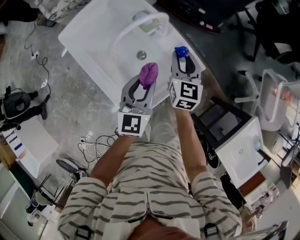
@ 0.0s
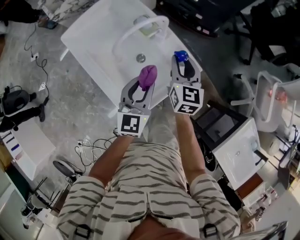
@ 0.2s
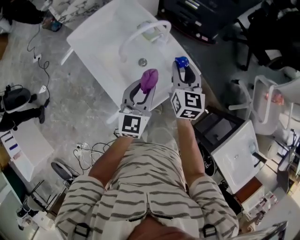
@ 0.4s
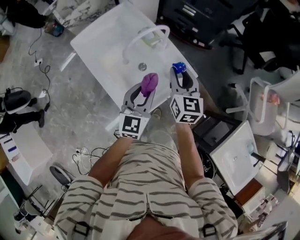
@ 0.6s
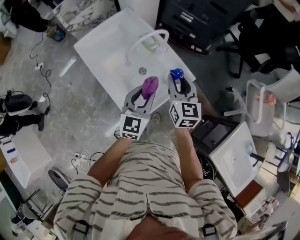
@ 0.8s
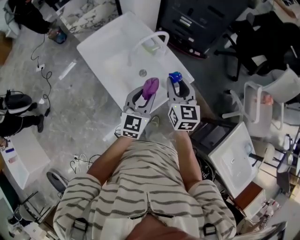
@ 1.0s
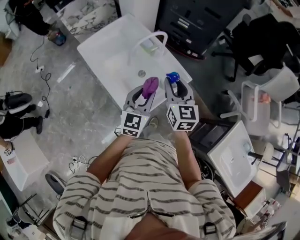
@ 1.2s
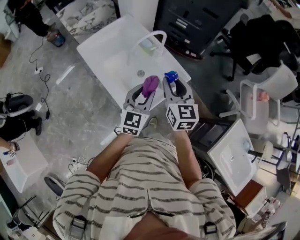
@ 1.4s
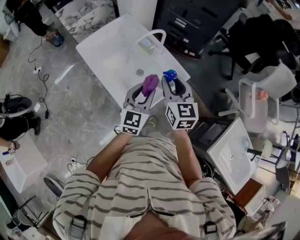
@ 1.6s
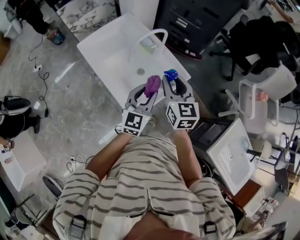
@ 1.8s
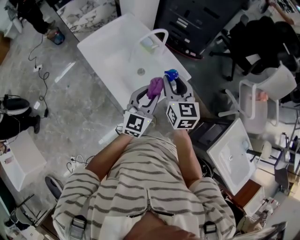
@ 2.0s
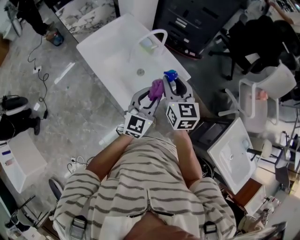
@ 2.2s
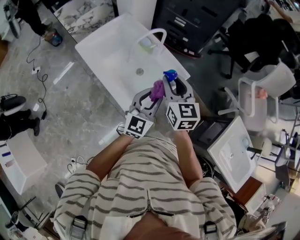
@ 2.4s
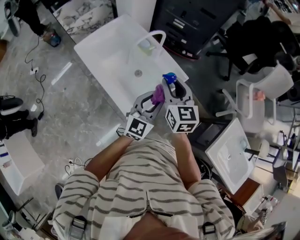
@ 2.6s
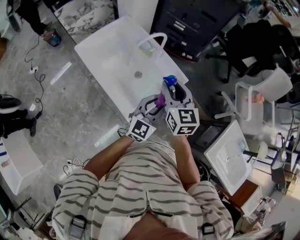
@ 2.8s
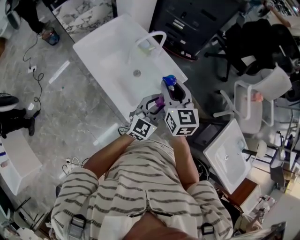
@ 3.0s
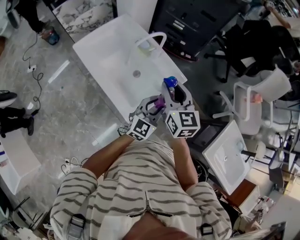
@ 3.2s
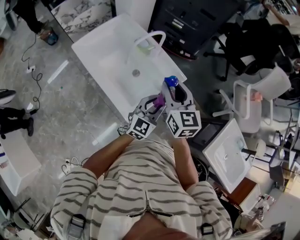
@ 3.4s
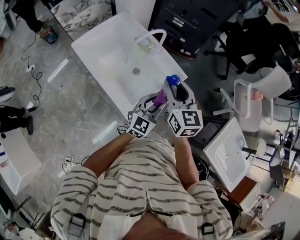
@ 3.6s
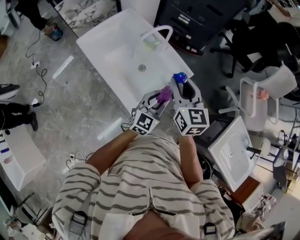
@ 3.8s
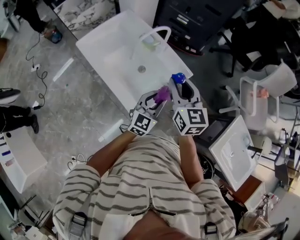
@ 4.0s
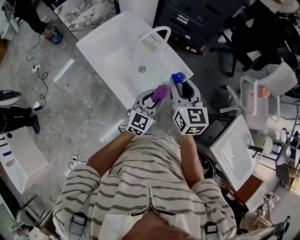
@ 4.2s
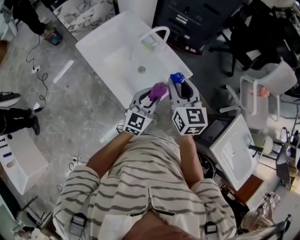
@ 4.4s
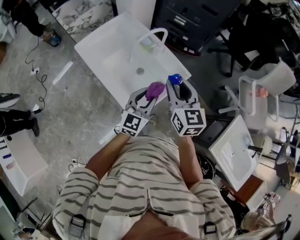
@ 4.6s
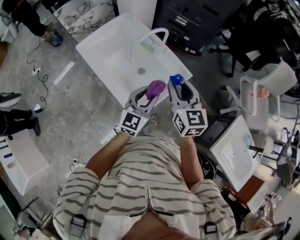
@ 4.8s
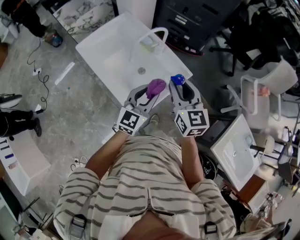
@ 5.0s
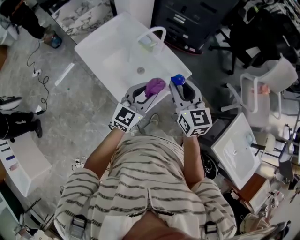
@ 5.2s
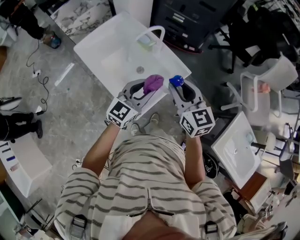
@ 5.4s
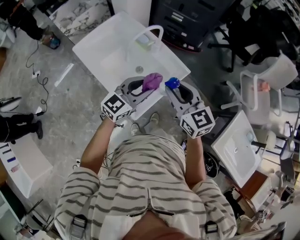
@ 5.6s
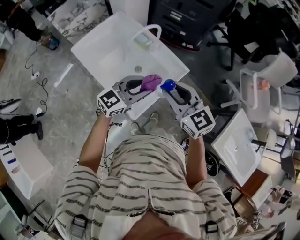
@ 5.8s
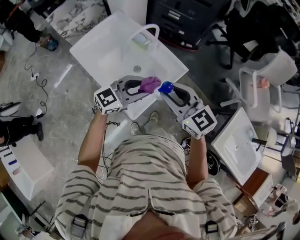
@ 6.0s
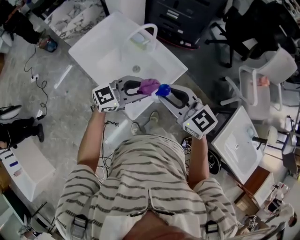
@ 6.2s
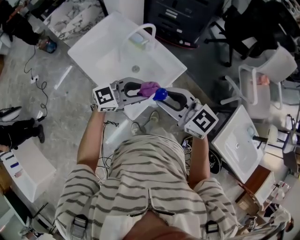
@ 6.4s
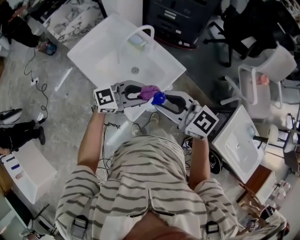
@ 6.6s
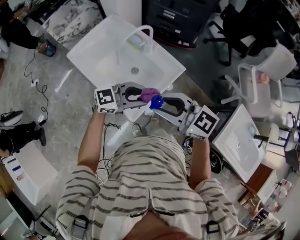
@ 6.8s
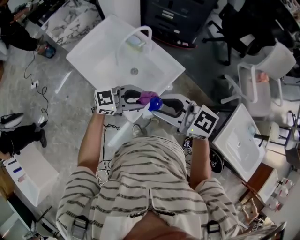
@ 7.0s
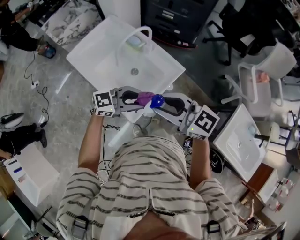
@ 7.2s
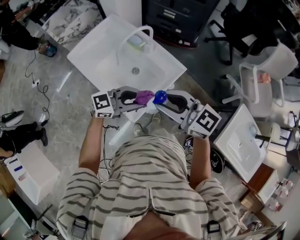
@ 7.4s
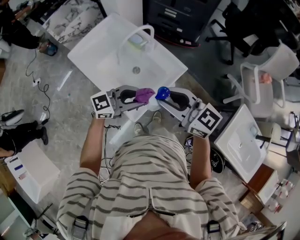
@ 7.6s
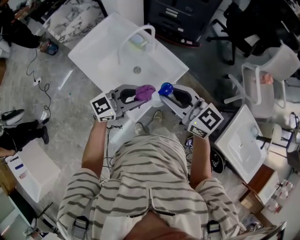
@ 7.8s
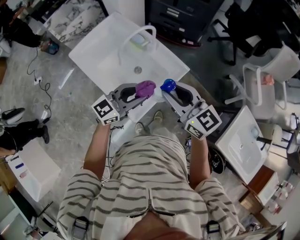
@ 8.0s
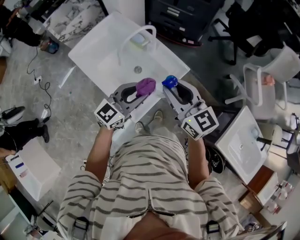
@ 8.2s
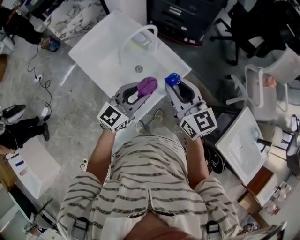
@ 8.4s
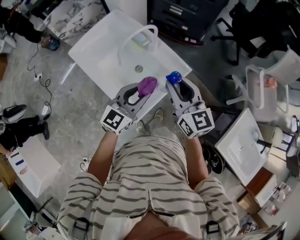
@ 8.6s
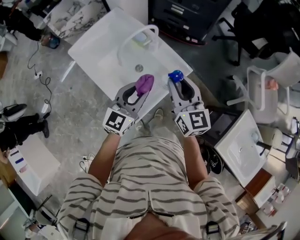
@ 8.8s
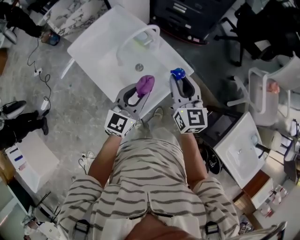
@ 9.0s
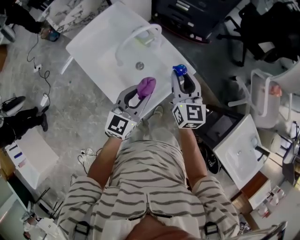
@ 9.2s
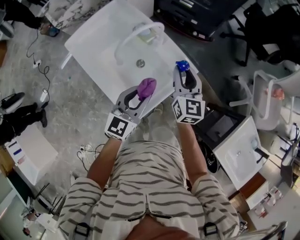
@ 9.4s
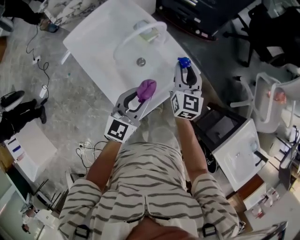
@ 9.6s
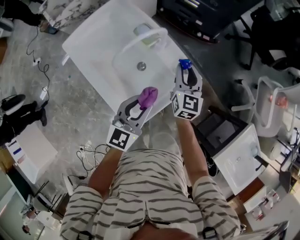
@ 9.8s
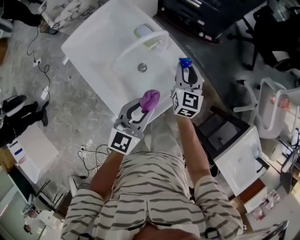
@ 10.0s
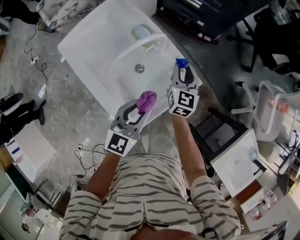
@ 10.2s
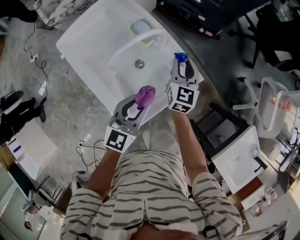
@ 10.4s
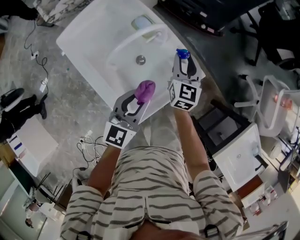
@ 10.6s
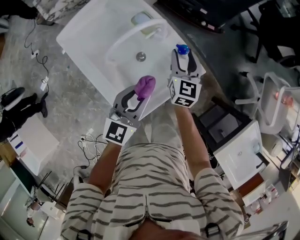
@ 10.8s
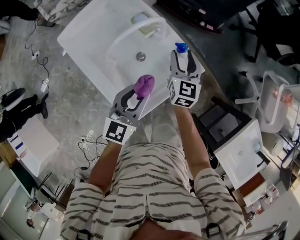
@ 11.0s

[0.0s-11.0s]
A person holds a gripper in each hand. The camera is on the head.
0.0s to 1.6s: The left gripper shifts approximately 10 cm backward and upward; the right gripper shifts some 25 cm upward and backward.
1.6s to 3.2s: The left gripper shifts some 5 cm to the right.
3.2s to 4.8s: The left gripper shifts some 5 cm to the left.
4.8s to 6.2s: The left gripper turns by some 40 degrees, while the right gripper shifts by approximately 5 cm, and turns by some 30 degrees.
6.2s to 7.8s: The grippers move only a little.
7.8s to 9.4s: The right gripper shifts by some 20 cm, and turns by roughly 40 degrees. Meanwhile the left gripper changes place by some 10 cm, and turns by roughly 40 degrees.
9.4s to 11.0s: The right gripper travels downward and forward by about 10 cm.

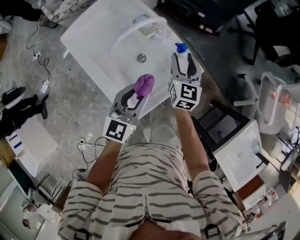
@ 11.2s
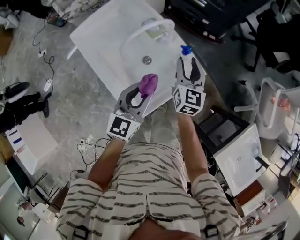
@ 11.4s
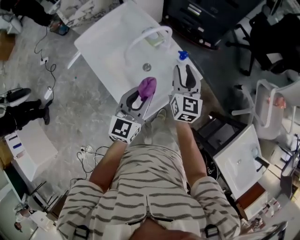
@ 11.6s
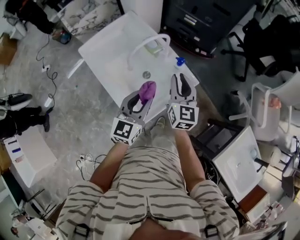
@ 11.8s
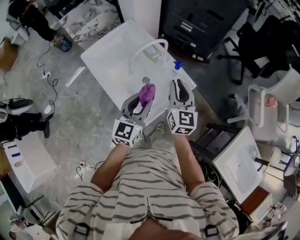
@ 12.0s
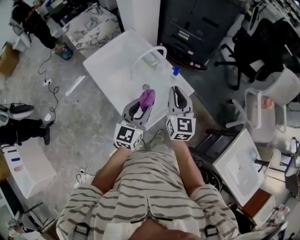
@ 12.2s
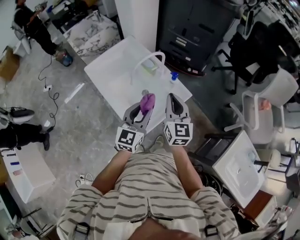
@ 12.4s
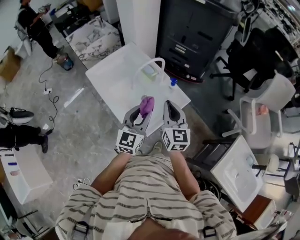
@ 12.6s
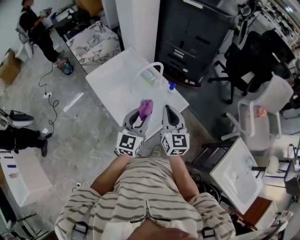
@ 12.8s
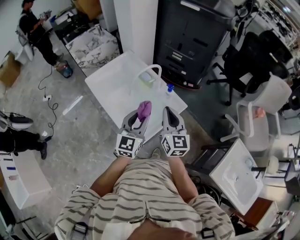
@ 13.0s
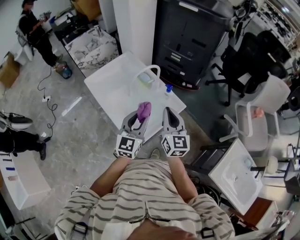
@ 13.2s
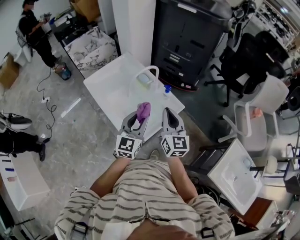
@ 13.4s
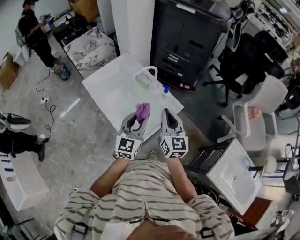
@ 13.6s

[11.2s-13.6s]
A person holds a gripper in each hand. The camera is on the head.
11.2s to 12.4s: The left gripper travels upward and backward by about 15 cm; the right gripper is displaced upward and backward by about 25 cm, and closes its fingers.
12.4s to 13.6s: The grippers move only a little.

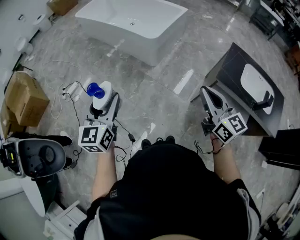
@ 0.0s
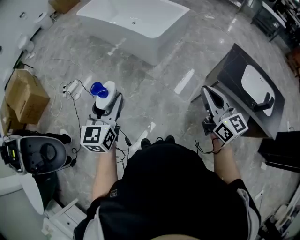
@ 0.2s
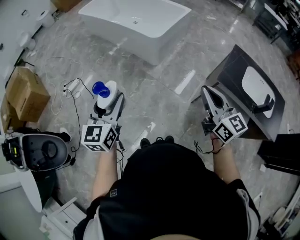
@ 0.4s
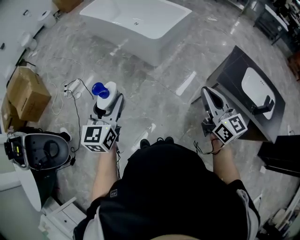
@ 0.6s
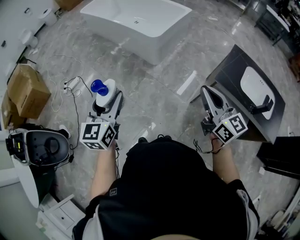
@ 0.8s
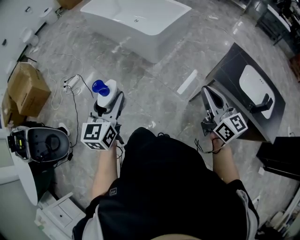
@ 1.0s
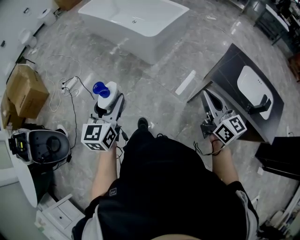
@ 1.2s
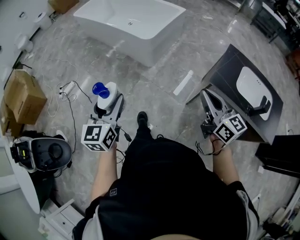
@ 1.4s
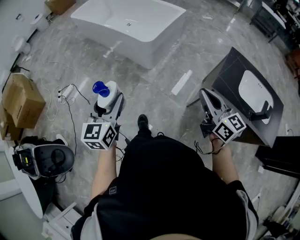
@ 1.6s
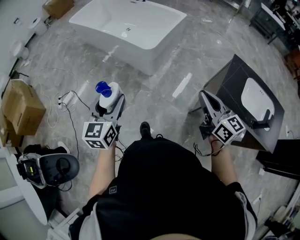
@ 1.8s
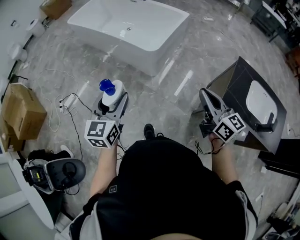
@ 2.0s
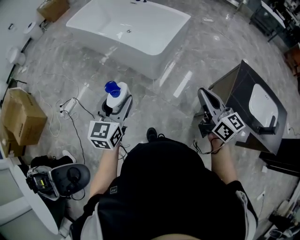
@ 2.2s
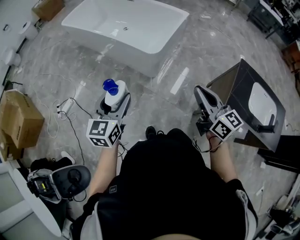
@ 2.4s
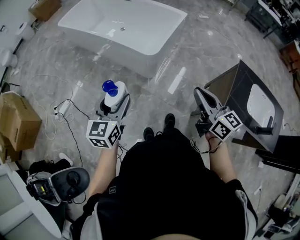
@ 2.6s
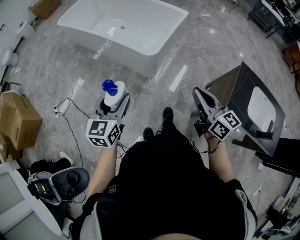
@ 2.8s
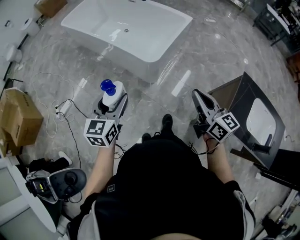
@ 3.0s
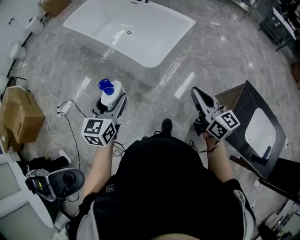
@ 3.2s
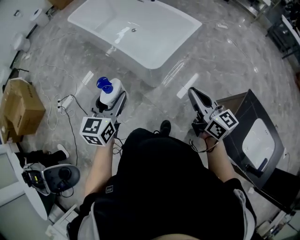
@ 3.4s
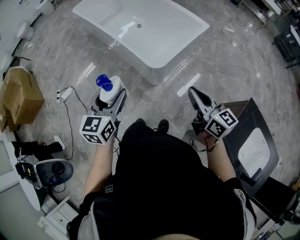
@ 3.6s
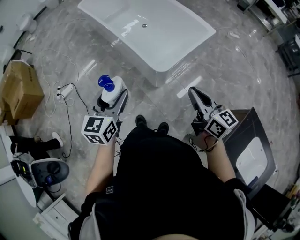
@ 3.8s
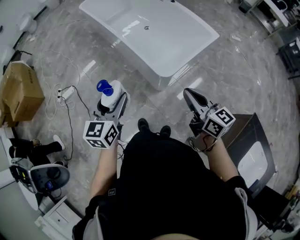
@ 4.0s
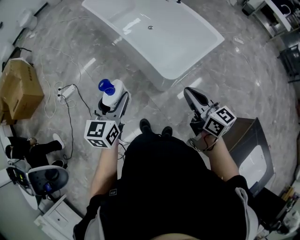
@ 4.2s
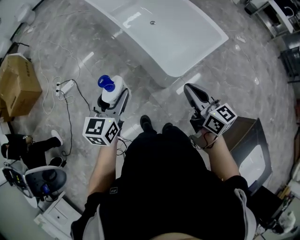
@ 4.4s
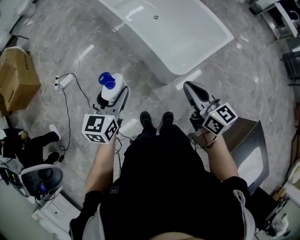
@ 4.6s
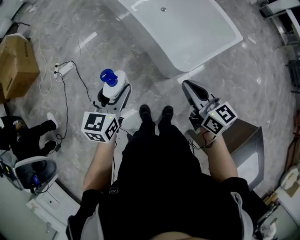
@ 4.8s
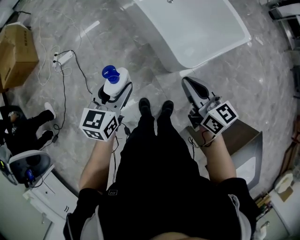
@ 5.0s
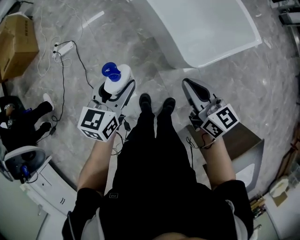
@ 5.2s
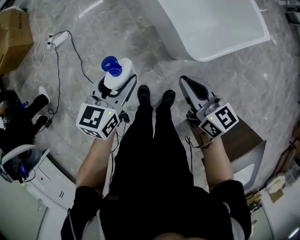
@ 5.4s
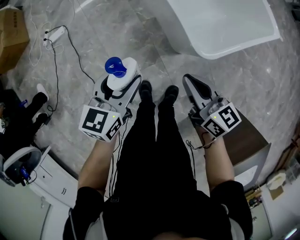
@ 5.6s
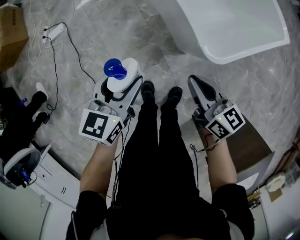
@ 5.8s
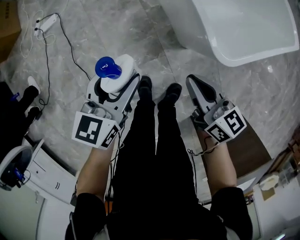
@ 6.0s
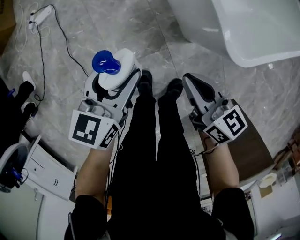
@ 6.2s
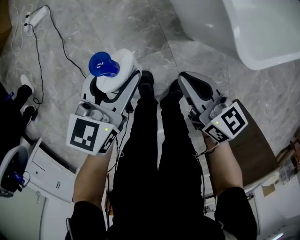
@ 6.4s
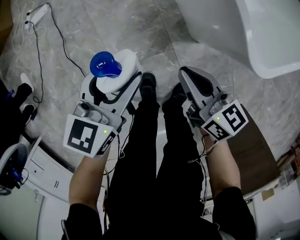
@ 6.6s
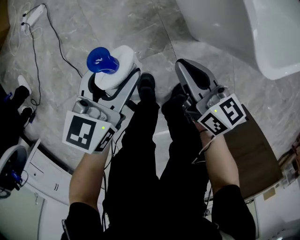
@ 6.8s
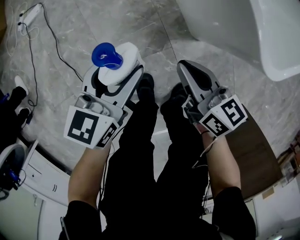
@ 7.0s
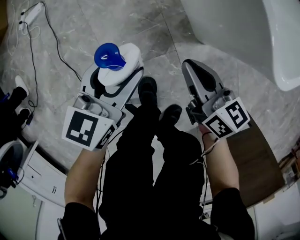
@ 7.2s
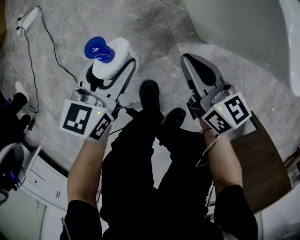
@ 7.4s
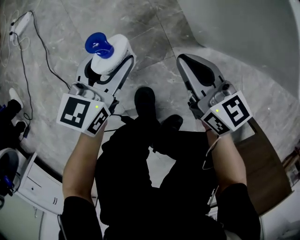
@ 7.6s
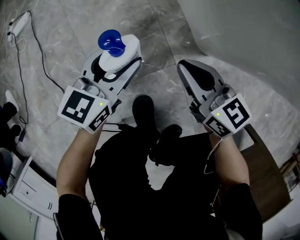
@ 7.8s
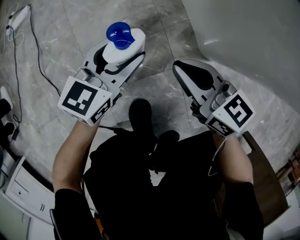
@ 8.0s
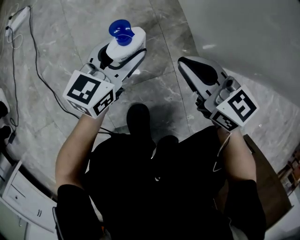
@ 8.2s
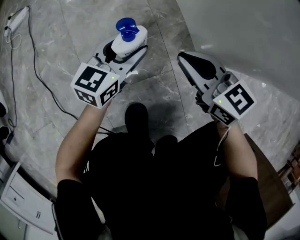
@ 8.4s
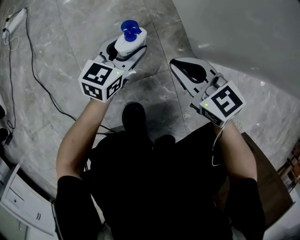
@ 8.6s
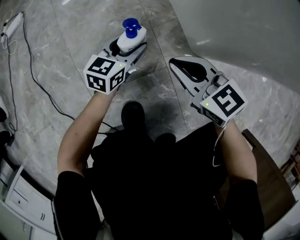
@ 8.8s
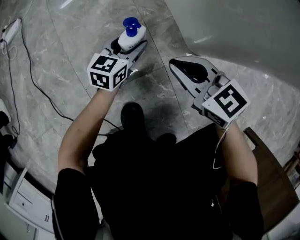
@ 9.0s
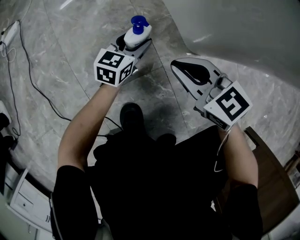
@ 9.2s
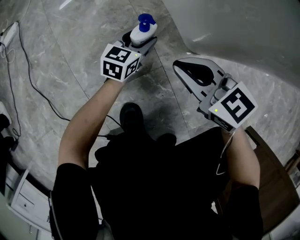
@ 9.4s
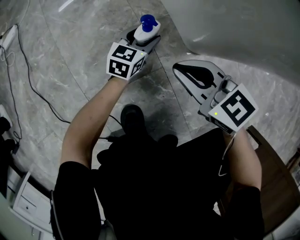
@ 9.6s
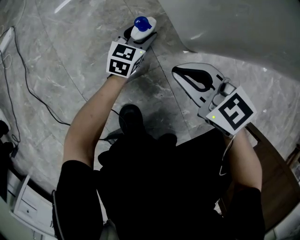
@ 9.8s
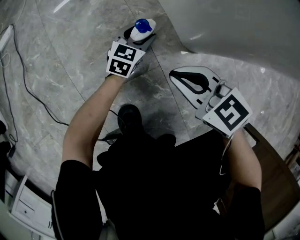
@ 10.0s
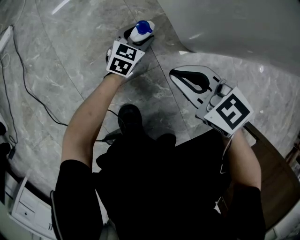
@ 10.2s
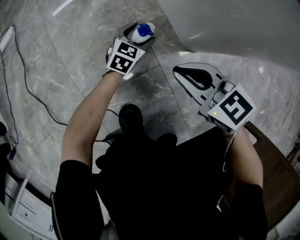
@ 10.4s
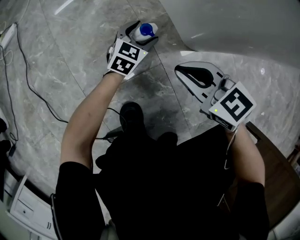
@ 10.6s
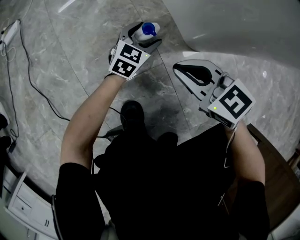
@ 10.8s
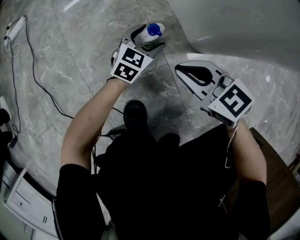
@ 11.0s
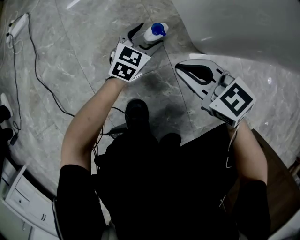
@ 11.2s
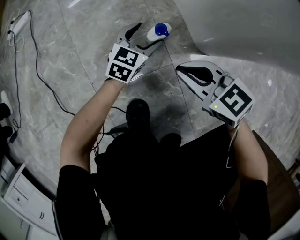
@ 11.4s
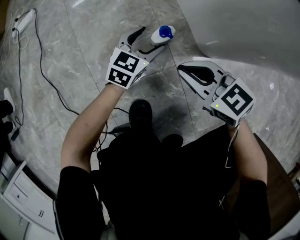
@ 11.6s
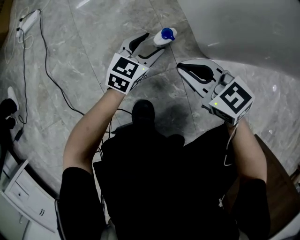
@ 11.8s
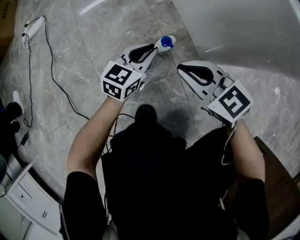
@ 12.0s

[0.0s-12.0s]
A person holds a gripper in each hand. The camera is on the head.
0.0s to 1.6s: The grippers both shift to the right and forward by about 10 cm.
1.6s to 3.0s: Both grippers travel together forward, approximately 30 cm.
3.0s to 4.4s: The grippers both shift forward by roughly 25 cm. The right gripper changes its angle by about 20 degrees.
4.4s to 6.0s: Both grippers travel together downward, some 35 cm. The right gripper changes its angle by some 20 degrees.
6.0s to 7.6s: Both grippers move downward, approximately 35 cm.
7.6s to 9.0s: The left gripper moves downward and to the right, some 25 cm. Meanwhile the right gripper heads downward, covering some 10 cm, and changes its angle by approximately 20 degrees.
9.0s to 10.4s: The left gripper heads downward and to the right, covering about 10 cm.
10.4s to 12.0s: The right gripper moves roughly 5 cm. Meanwhile the left gripper travels upward and to the left by about 15 cm, and closes its fingers.
